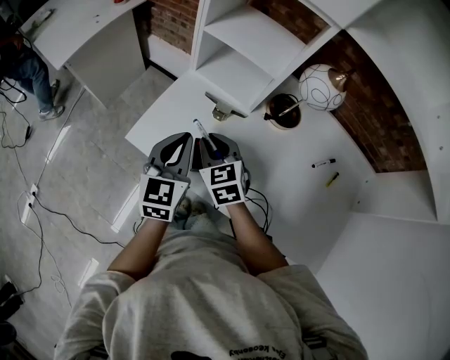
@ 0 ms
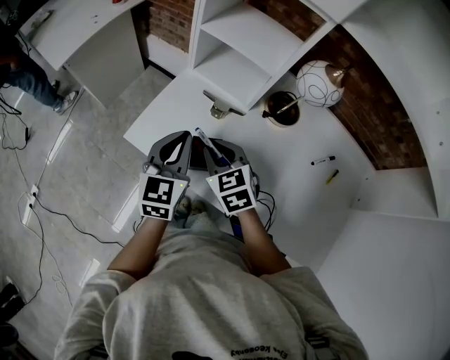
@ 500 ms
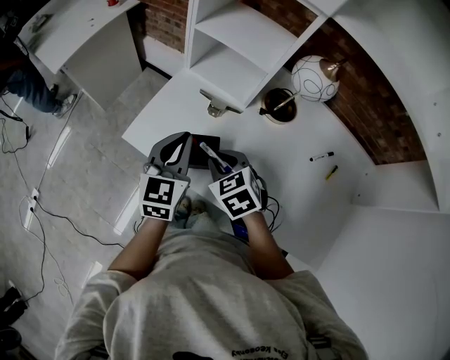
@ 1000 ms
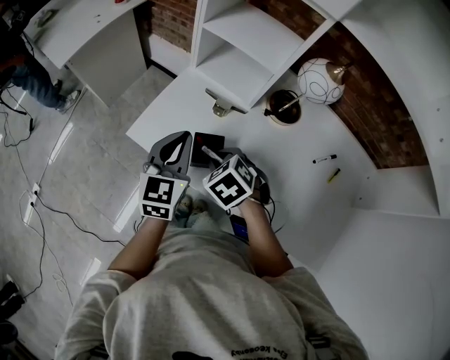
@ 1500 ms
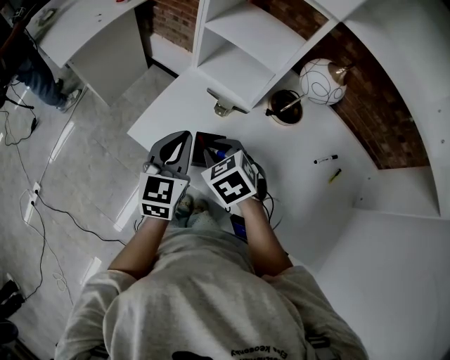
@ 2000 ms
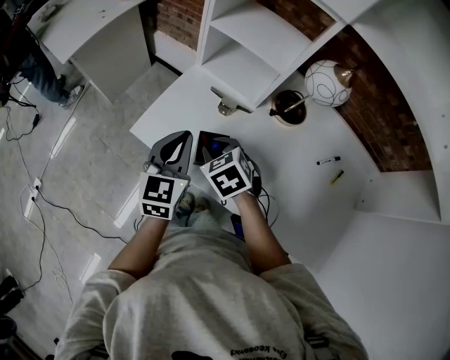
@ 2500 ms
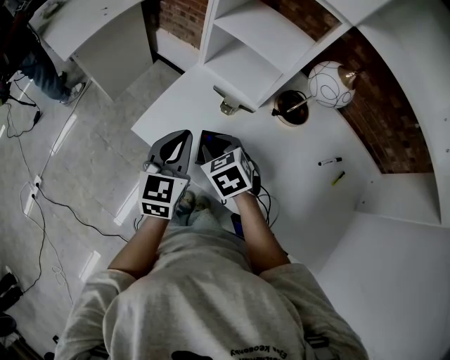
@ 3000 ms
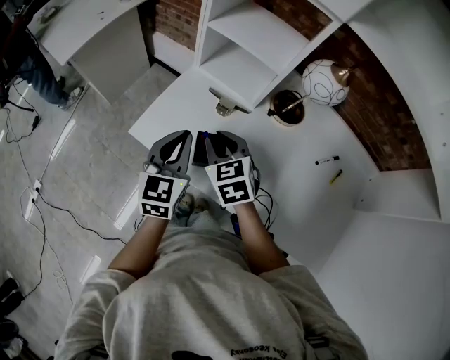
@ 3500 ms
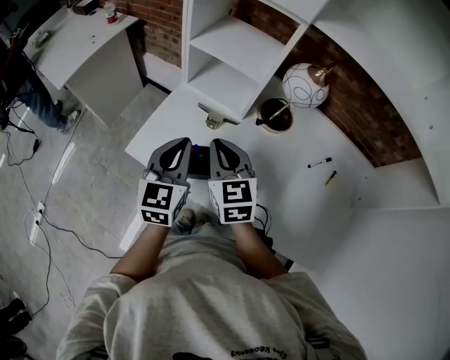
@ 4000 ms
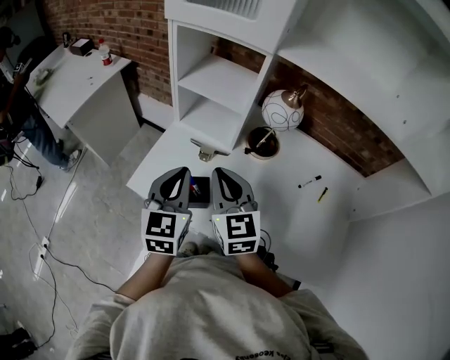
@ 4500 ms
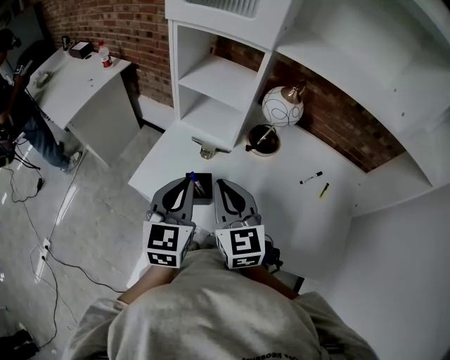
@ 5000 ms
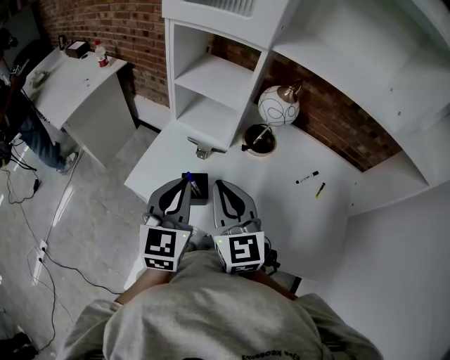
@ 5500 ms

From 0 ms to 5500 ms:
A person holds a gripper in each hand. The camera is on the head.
From 0 ms to 2000 ms: The right gripper swivels some 20 degrees.
From 2000 ms to 3500 ms: There are only small adjustments of the grippers.
From 3500 ms to 5500 ms: The right gripper shifts approximately 20 cm upward and backward, and points its fingers some 30 degrees further upward. Meanwhile the left gripper goes about 10 cm upward and backward.

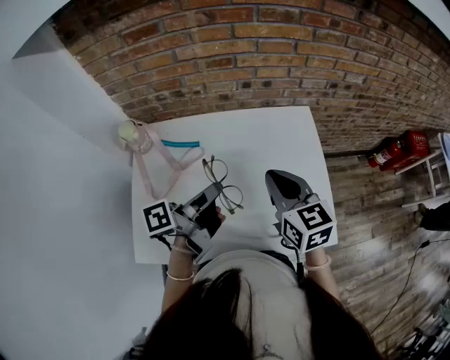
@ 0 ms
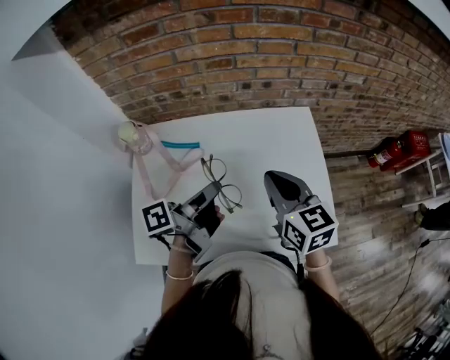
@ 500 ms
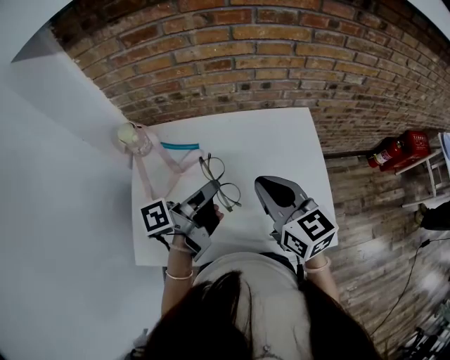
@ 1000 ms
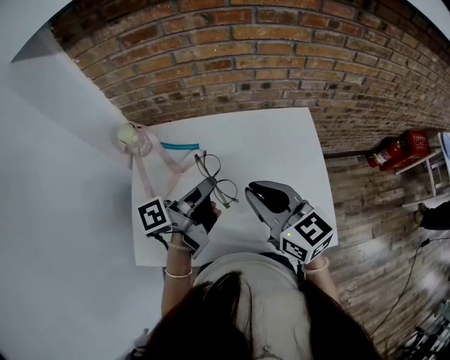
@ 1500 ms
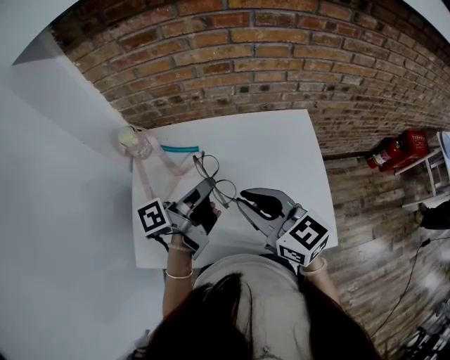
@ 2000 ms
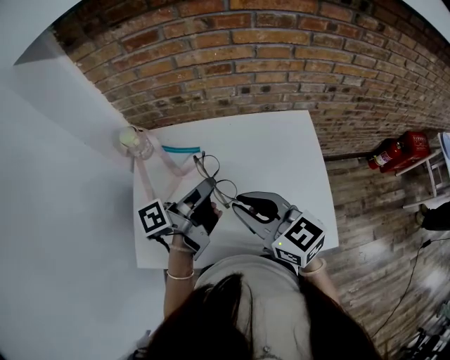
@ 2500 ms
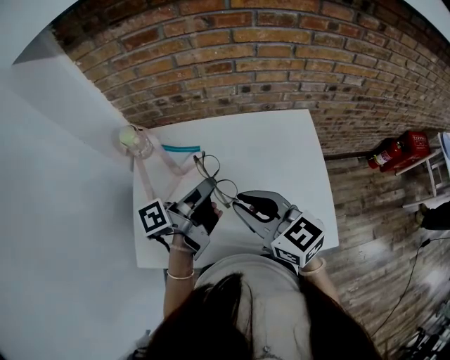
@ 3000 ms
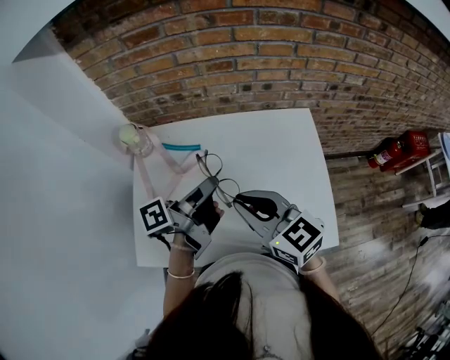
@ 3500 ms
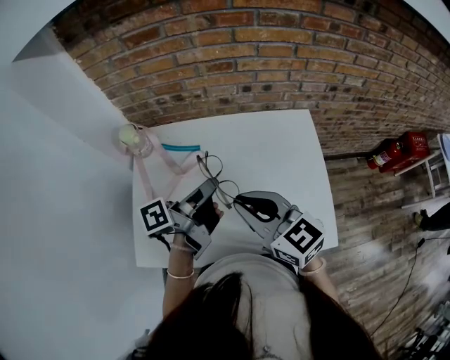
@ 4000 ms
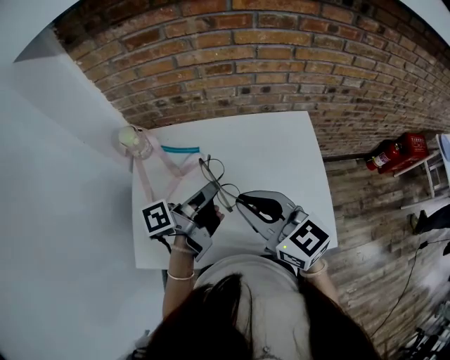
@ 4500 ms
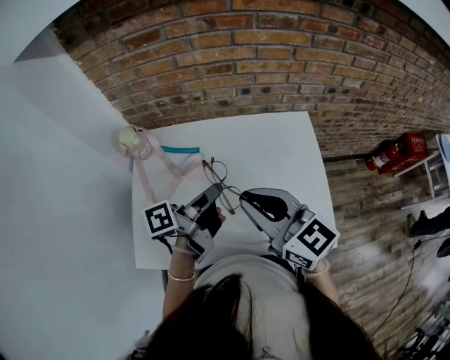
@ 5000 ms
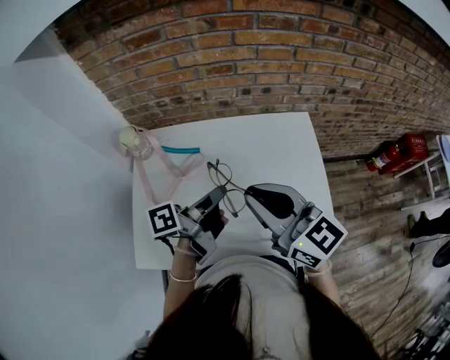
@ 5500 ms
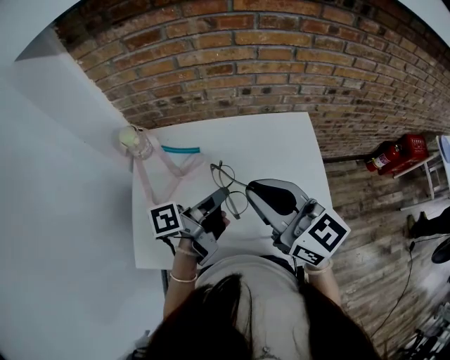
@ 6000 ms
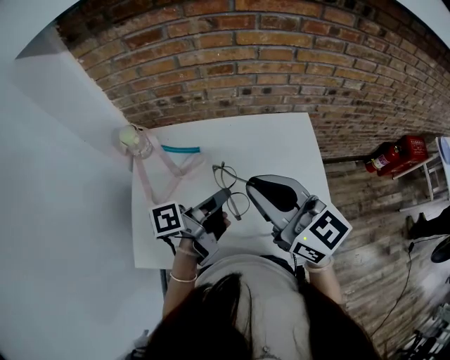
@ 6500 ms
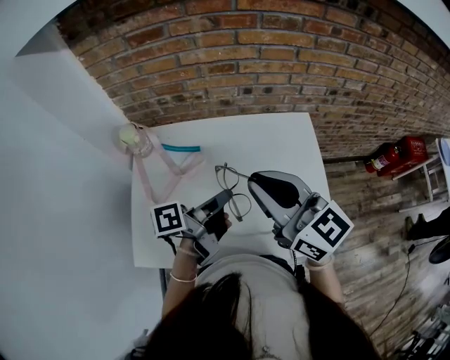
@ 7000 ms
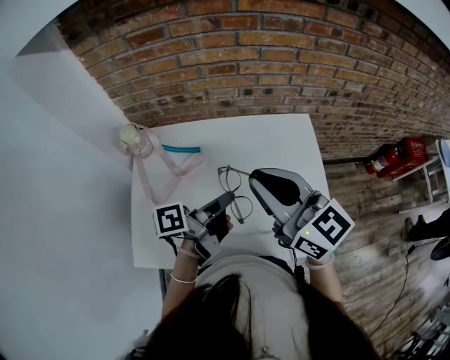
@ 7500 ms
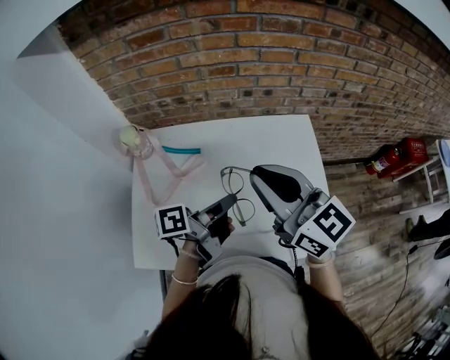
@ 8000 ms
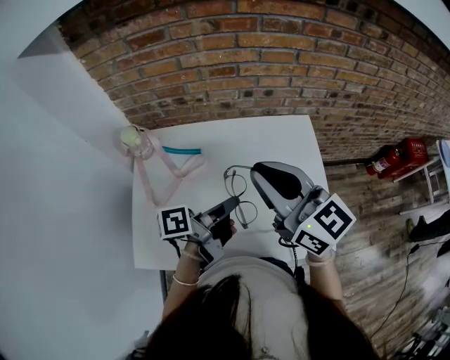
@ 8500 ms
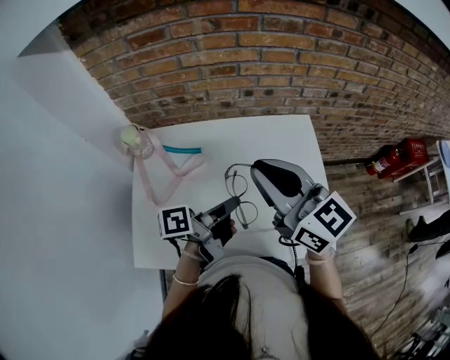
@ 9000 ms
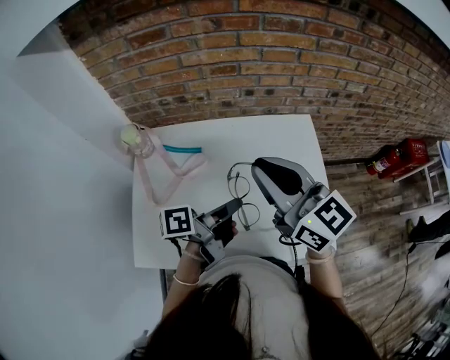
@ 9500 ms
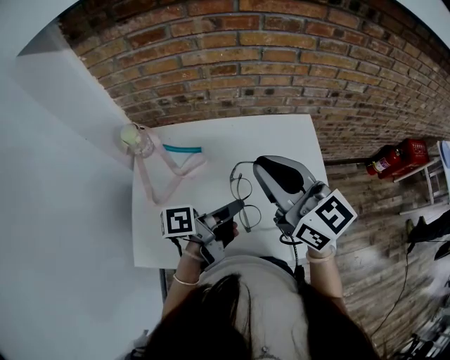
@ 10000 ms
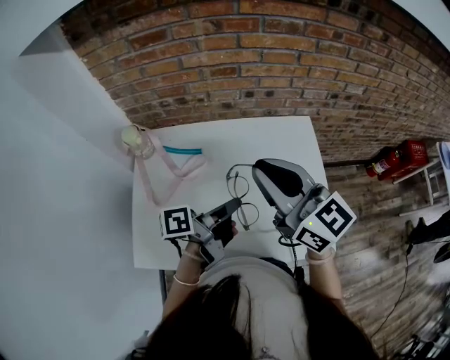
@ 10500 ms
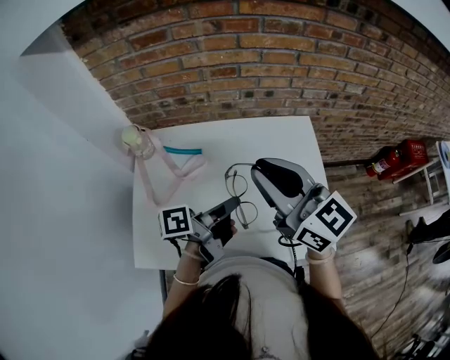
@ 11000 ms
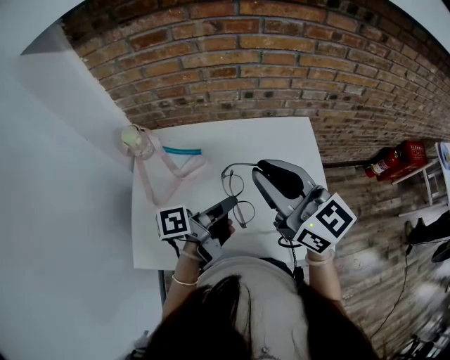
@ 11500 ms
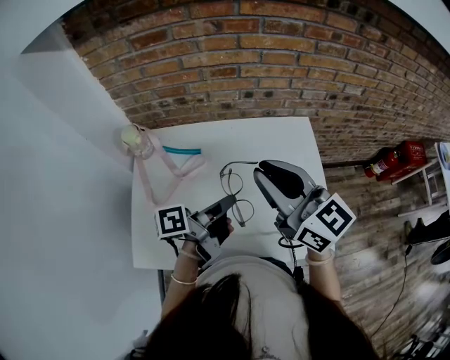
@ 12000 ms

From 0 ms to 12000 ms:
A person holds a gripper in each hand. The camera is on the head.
From 0 ms to 2000 ms: The right gripper shifts by about 10 cm, and turns by approximately 20 degrees.
From 4000 ms to 6000 ms: The right gripper moves upward, about 5 cm.

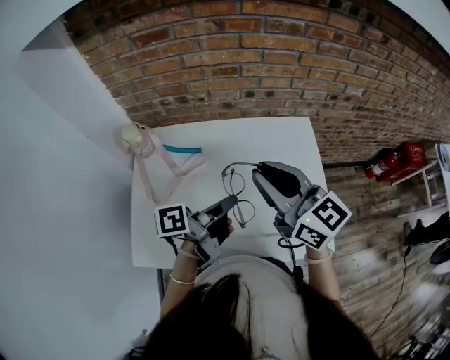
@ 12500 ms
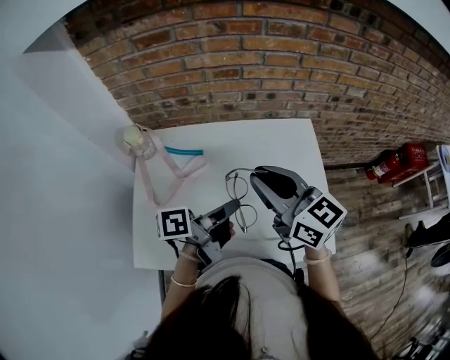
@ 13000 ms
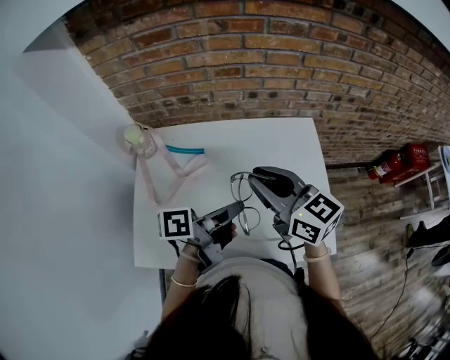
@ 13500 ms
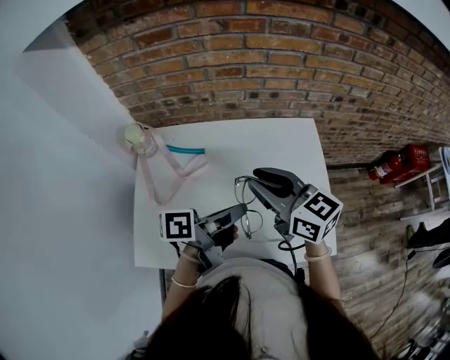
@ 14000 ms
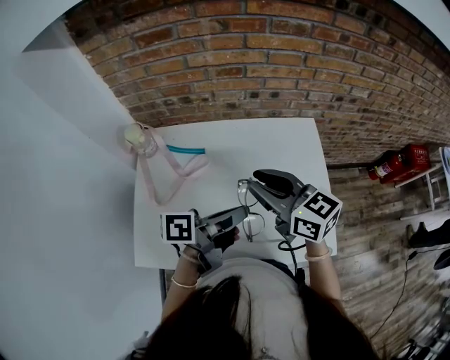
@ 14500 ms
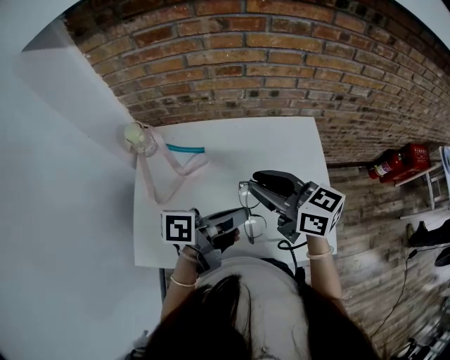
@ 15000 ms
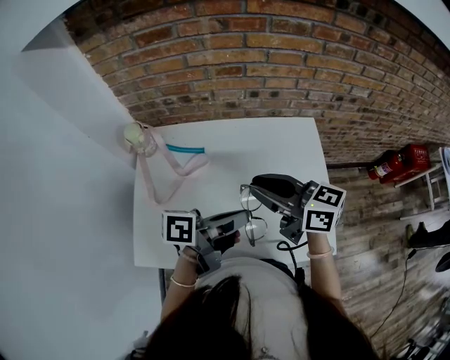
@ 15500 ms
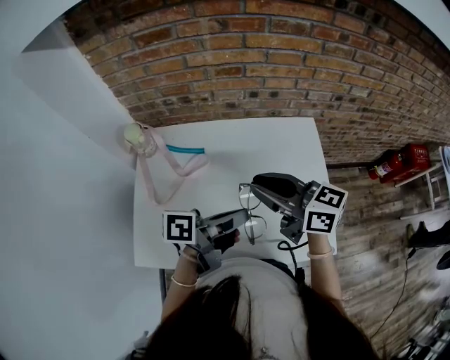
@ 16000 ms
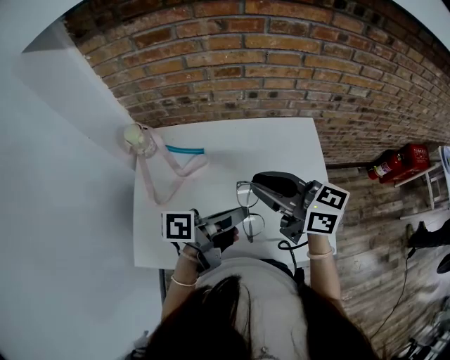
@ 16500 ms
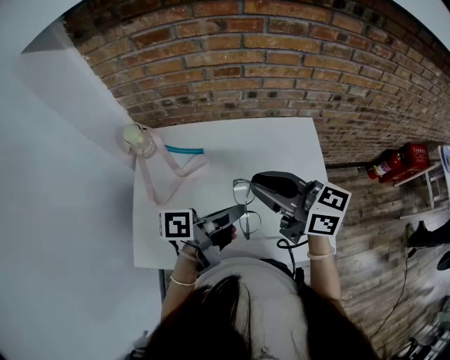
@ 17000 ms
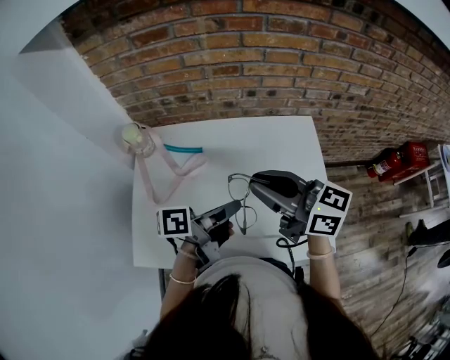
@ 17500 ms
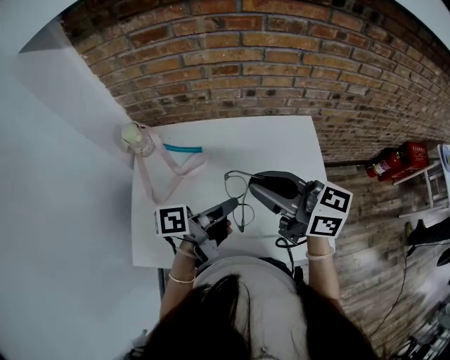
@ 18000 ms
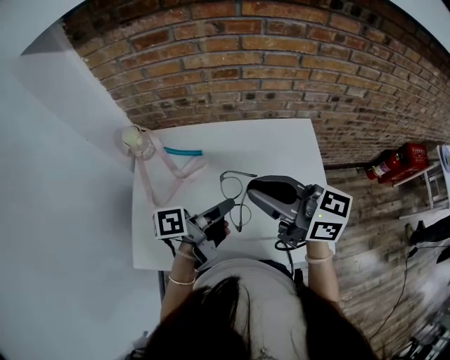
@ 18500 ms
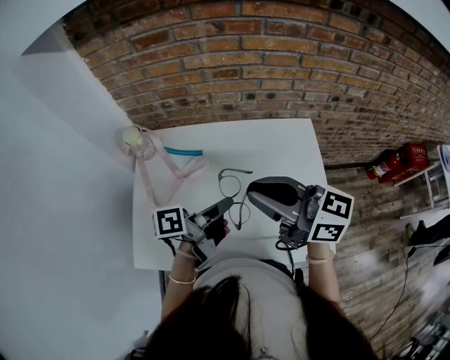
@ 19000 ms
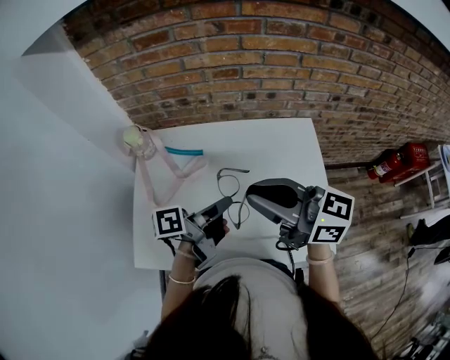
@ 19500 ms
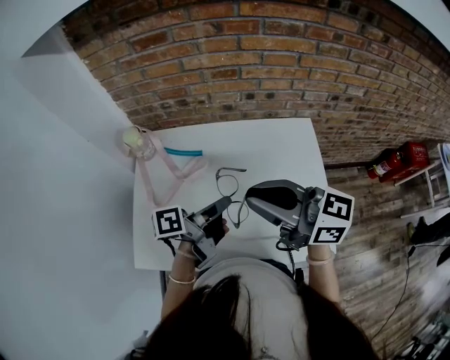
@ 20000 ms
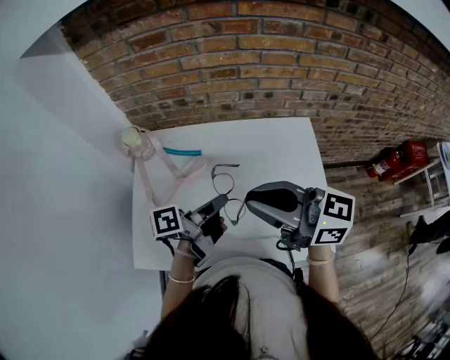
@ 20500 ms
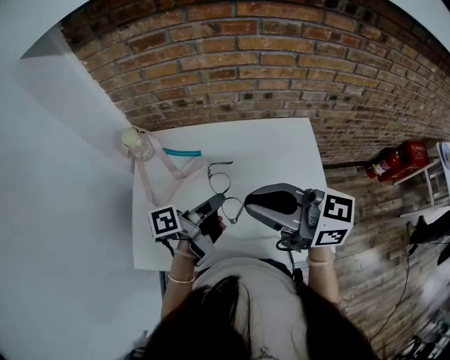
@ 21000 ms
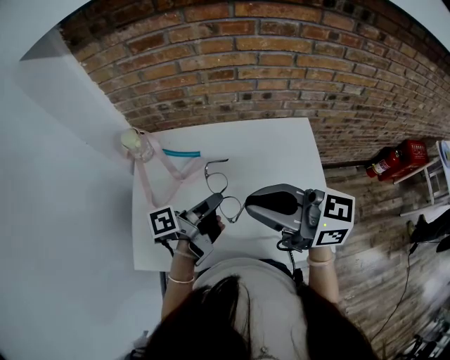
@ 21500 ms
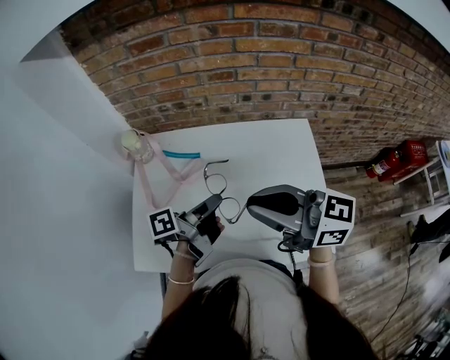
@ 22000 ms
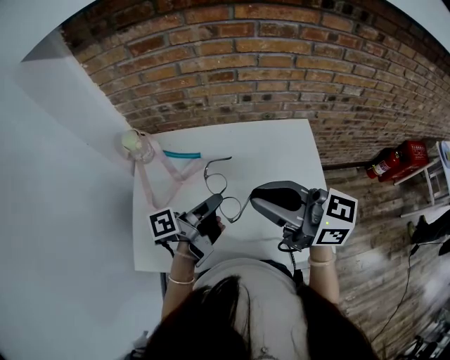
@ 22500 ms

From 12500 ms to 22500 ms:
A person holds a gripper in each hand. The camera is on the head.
From 12500 ms to 14500 ms: The right gripper goes some 5 cm downward.
